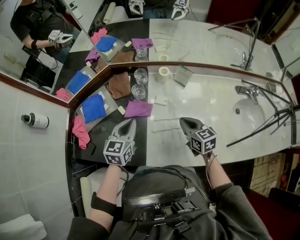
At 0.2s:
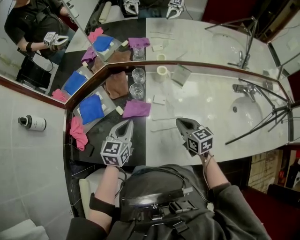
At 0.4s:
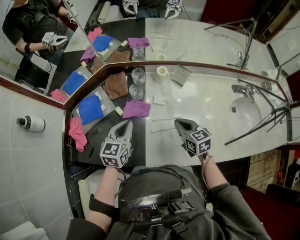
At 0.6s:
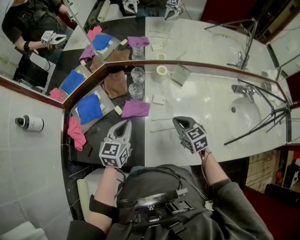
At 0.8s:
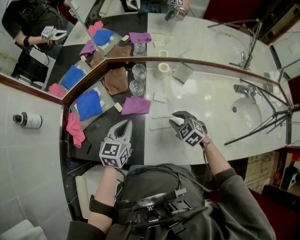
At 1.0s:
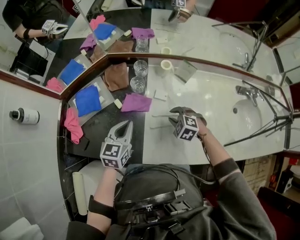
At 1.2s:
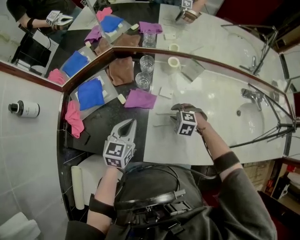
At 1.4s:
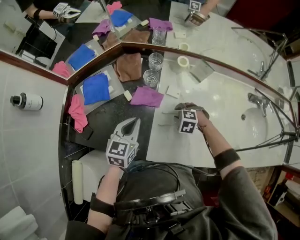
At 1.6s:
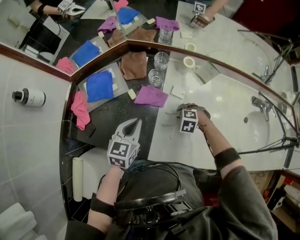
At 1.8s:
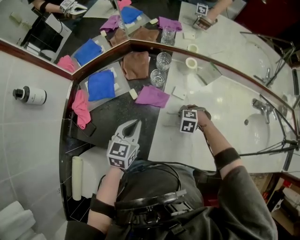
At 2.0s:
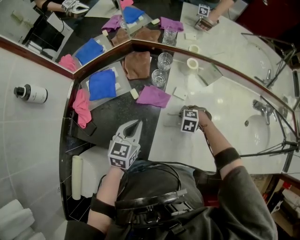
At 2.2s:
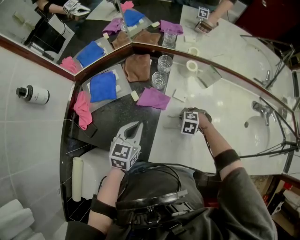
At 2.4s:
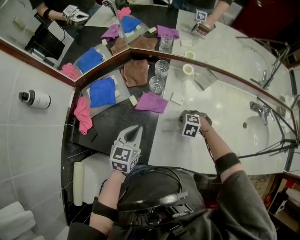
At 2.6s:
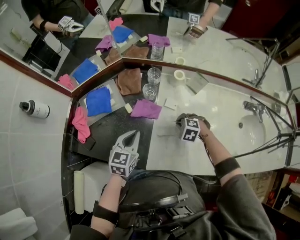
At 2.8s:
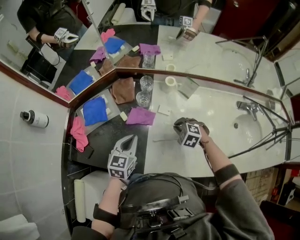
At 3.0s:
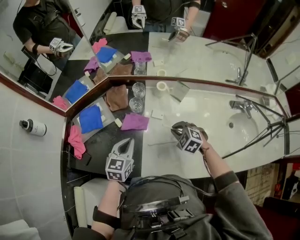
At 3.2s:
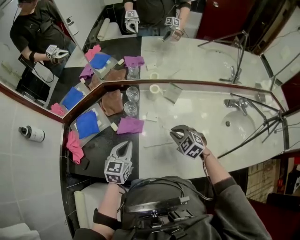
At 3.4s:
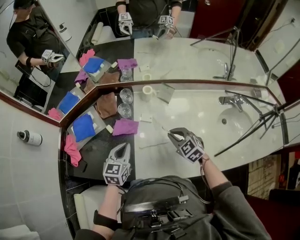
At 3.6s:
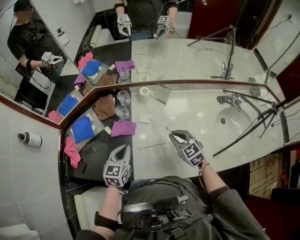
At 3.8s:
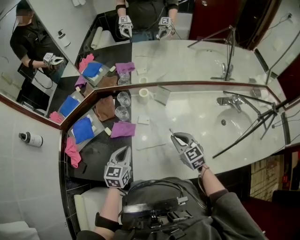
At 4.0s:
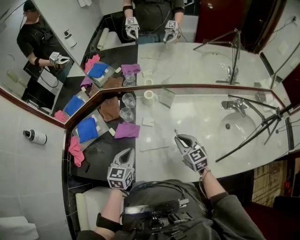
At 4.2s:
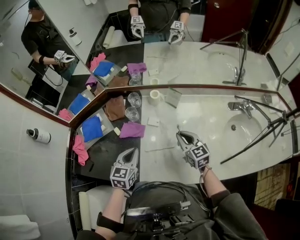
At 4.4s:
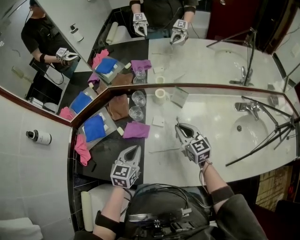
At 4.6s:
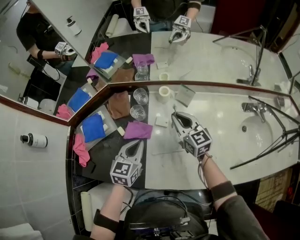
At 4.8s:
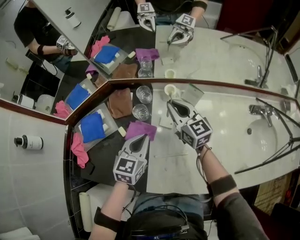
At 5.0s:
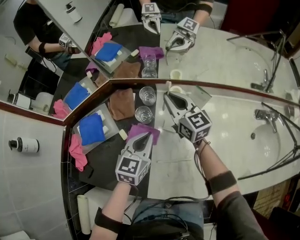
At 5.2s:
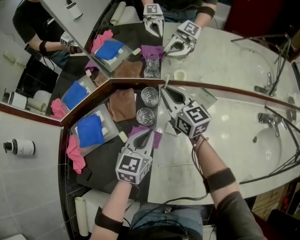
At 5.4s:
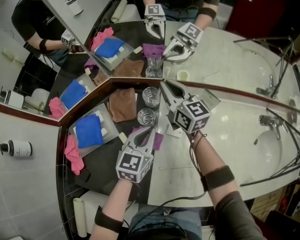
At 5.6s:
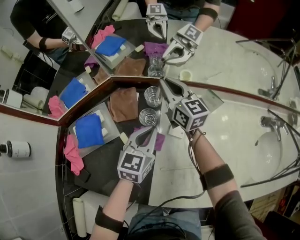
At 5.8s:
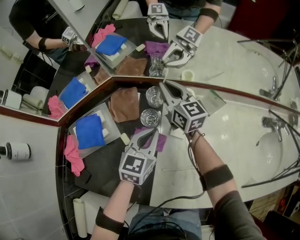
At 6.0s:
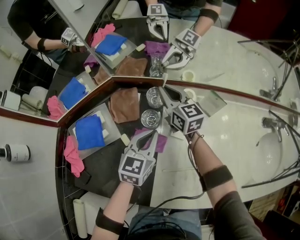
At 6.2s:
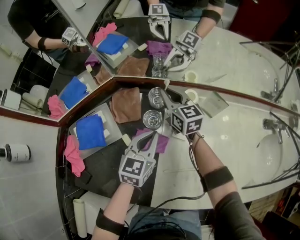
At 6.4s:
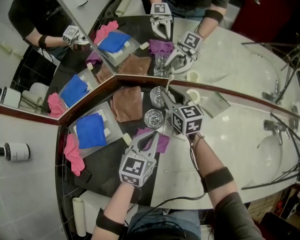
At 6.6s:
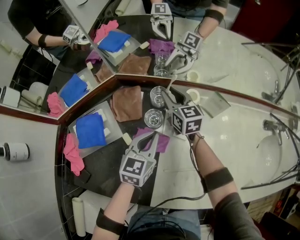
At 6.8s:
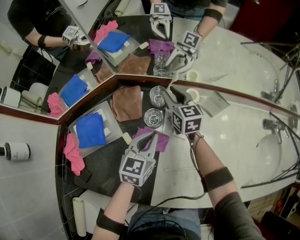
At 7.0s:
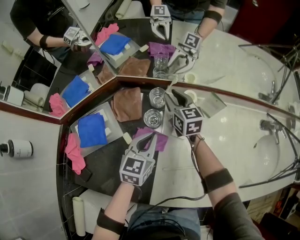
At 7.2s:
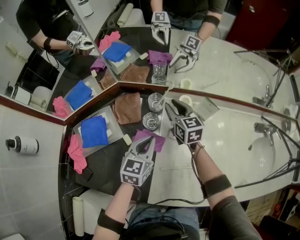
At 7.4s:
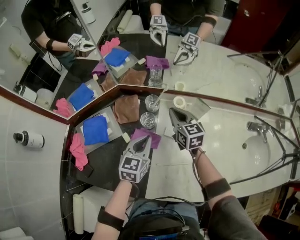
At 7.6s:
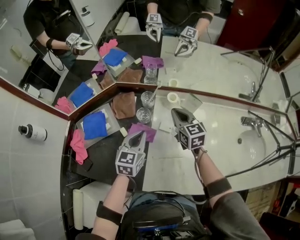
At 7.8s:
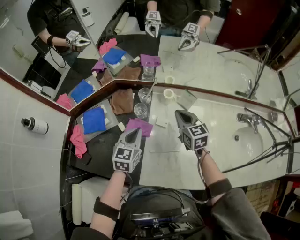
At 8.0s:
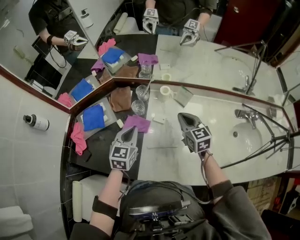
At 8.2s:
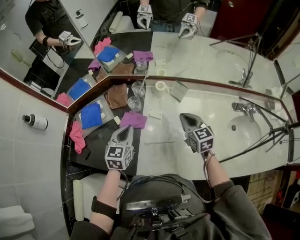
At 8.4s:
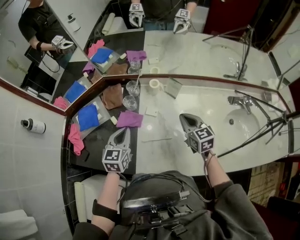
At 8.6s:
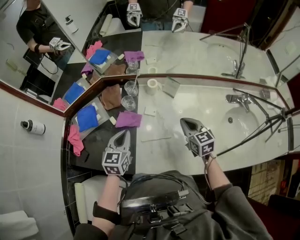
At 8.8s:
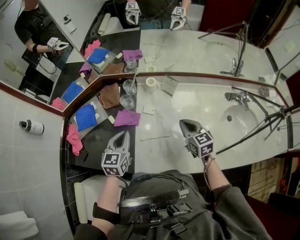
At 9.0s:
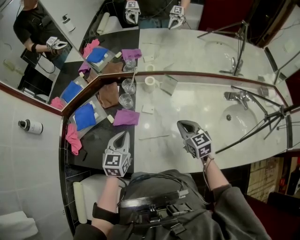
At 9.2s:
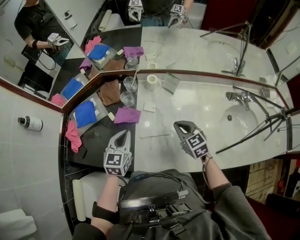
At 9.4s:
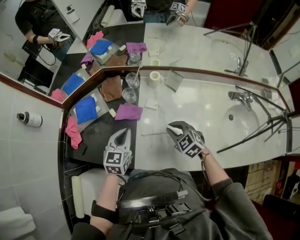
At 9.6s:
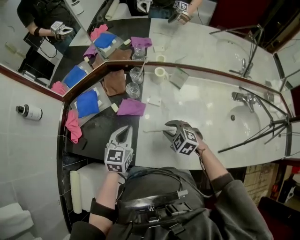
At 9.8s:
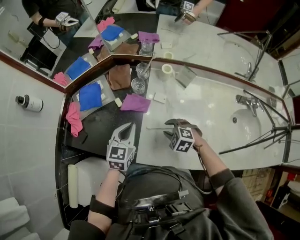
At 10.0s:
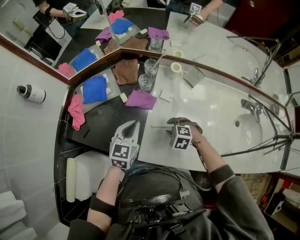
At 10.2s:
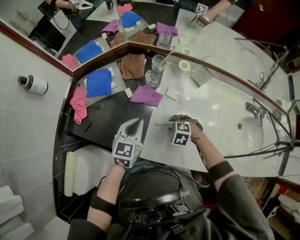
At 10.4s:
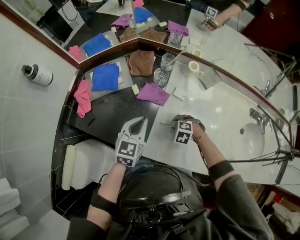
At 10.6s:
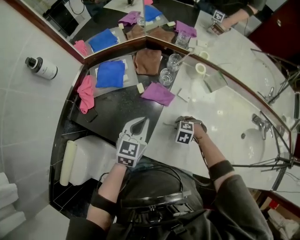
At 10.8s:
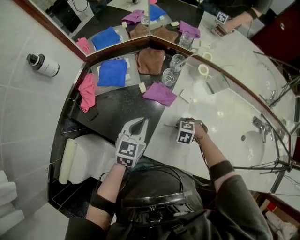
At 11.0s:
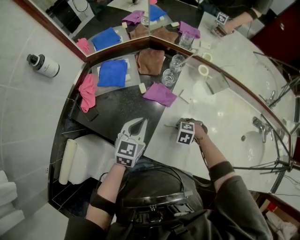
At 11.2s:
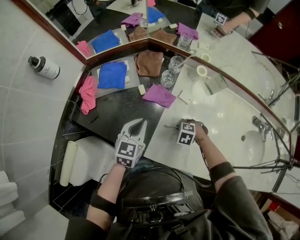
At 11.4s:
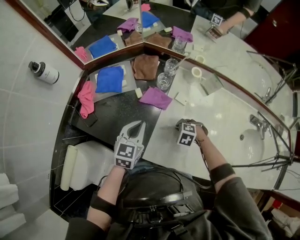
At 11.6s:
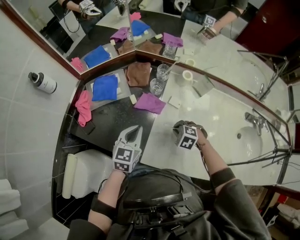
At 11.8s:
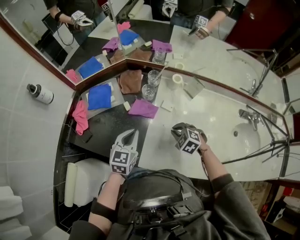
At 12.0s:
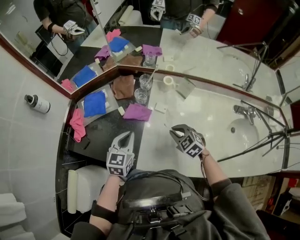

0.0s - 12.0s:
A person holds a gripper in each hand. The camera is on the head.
0.0s - 1.6s: The left gripper travels downward by about 5 cm; the right gripper is displaced downward by approximately 20 cm, tilts its fingers approximately 50 degrees downward, and opens its fingers.
1.6s - 3.0s: The right gripper is displaced upward by about 15 cm, swivels about 30 degrees, and closes up.
3.0s - 4.4s: The right gripper travels upward by roughly 10 cm, and tilts its fingers approximately 40 degrees upward. The left gripper heads to the right, covering about 5 cm.
4.4s - 6.0s: The left gripper moves forward and downward, about 15 cm; the right gripper heads forward and to the left, covering roughly 30 cm.
6.0s - 7.6s: The left gripper goes approximately 10 cm upward and backward; the right gripper goes roughly 15 cm backward, to the right and upward, and opens, then closes once more.
7.6s - 9.0s: The left gripper goes about 10 cm backward. Meanwhile the right gripper shifts about 20 cm backward and to the right.
9.0s - 10.4s: The right gripper moves downward, some 20 cm, points its fingers approximately 50 degrees further downward, and opens. The left gripper ends up roughly 5 cm from where it was.
10.4s - 12.0s: The right gripper goes some 15 cm upward, points its fingers some 30 degrees further upward, and closes up.

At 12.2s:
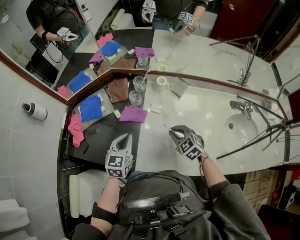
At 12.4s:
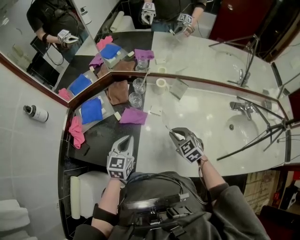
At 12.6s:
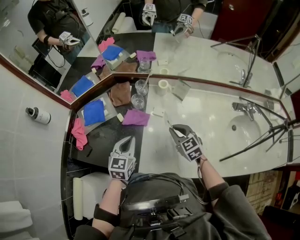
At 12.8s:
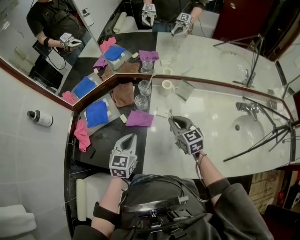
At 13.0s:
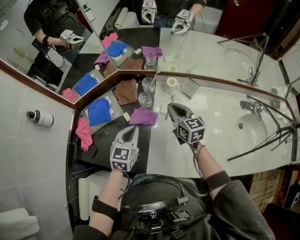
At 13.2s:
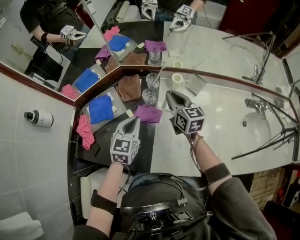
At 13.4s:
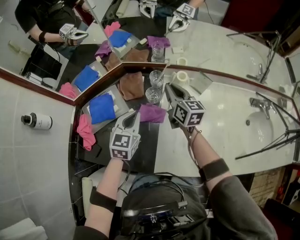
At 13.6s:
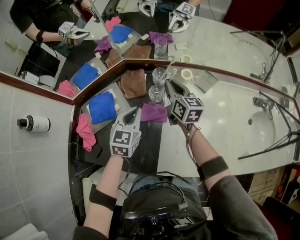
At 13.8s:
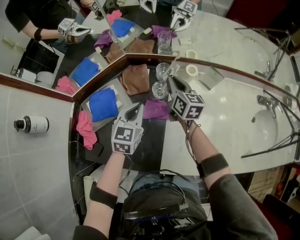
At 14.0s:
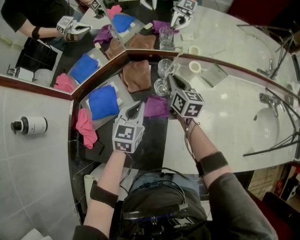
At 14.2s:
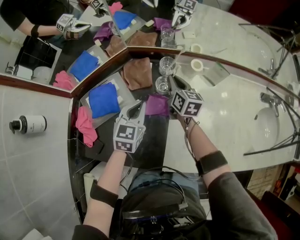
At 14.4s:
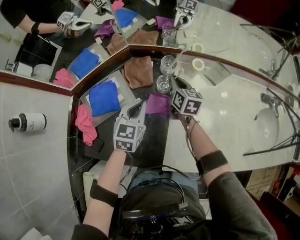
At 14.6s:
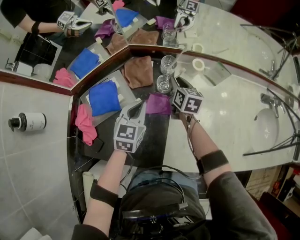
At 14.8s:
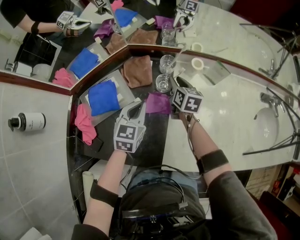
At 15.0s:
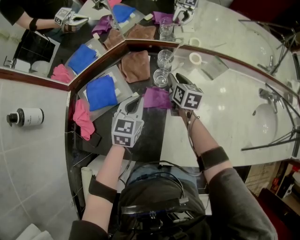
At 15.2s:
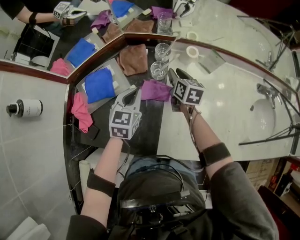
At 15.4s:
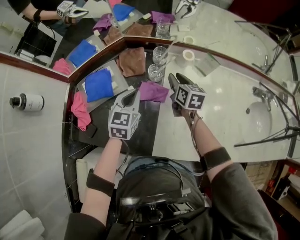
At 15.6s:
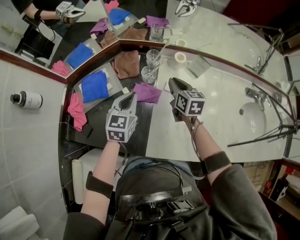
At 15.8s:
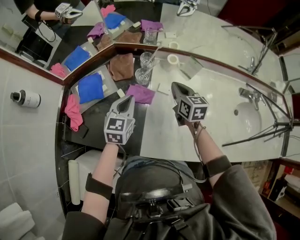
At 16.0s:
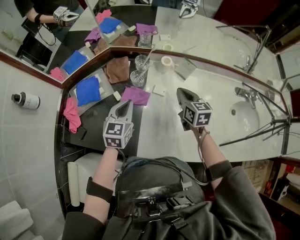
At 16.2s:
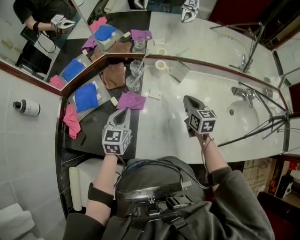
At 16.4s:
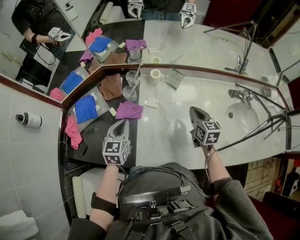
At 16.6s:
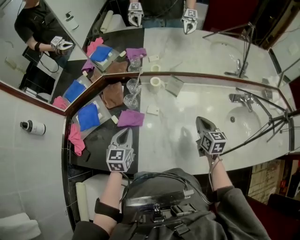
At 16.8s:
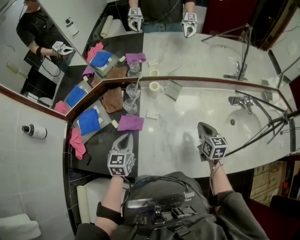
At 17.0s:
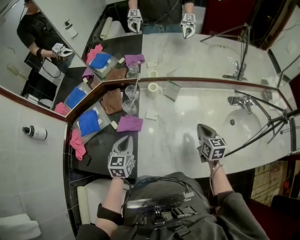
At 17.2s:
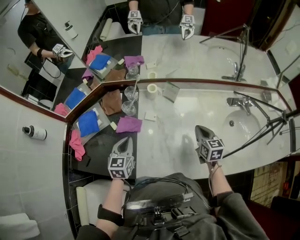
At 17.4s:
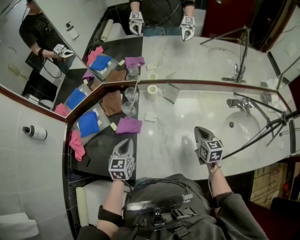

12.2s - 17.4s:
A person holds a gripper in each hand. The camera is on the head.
12.2s - 14.0s: The left gripper is displaced forward by roughly 15 cm. The right gripper shifts some 30 cm forward and to the left, and rolls clockwise, seen from behind, by approximately 50 degrees.
14.0s - 15.6s: The right gripper is displaced backward and to the right by about 10 cm, and opens, then closes once more. The left gripper shifts by approximately 5 cm.
15.6s - 17.4s: The right gripper goes some 30 cm to the right and backward. Meanwhile the left gripper travels to the right and backward by some 10 cm.

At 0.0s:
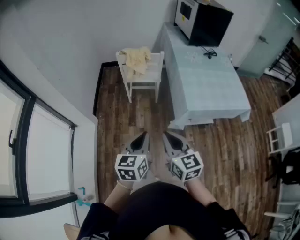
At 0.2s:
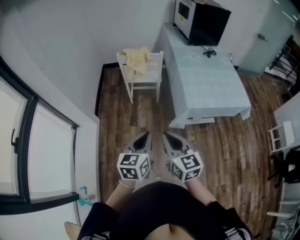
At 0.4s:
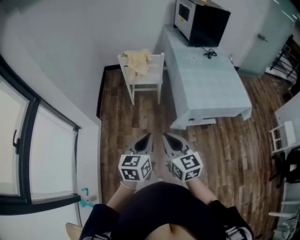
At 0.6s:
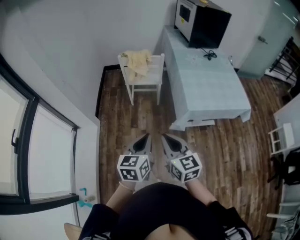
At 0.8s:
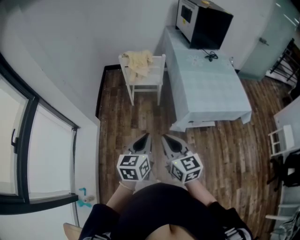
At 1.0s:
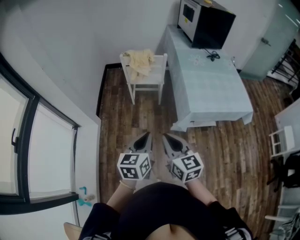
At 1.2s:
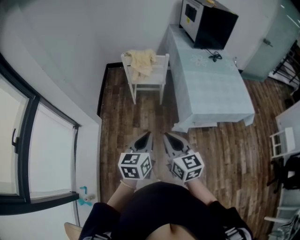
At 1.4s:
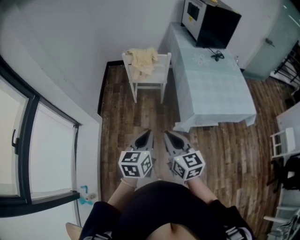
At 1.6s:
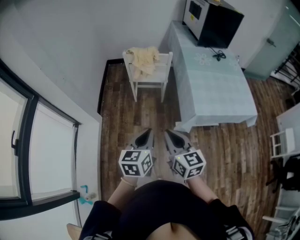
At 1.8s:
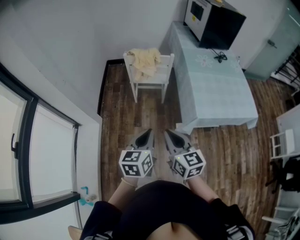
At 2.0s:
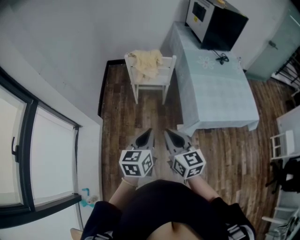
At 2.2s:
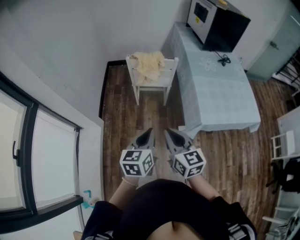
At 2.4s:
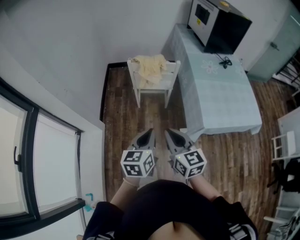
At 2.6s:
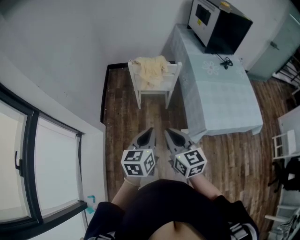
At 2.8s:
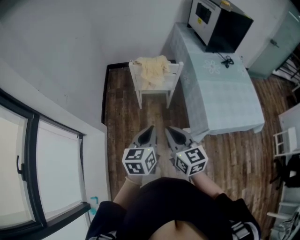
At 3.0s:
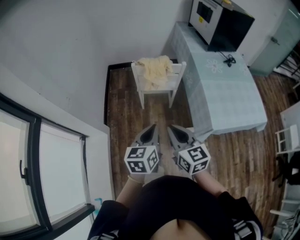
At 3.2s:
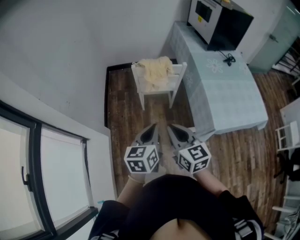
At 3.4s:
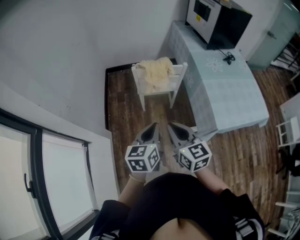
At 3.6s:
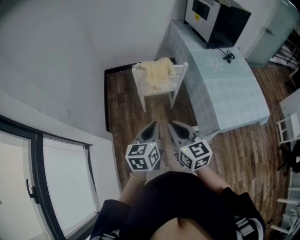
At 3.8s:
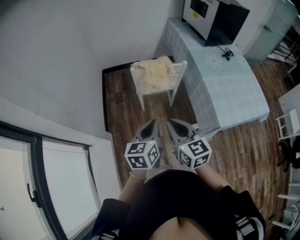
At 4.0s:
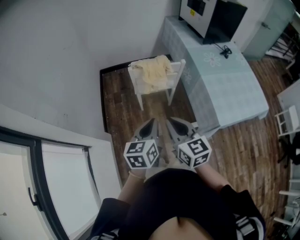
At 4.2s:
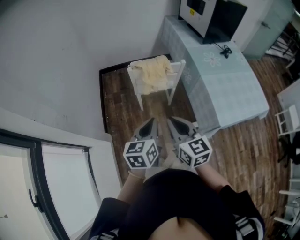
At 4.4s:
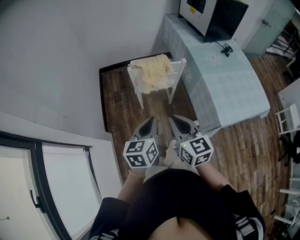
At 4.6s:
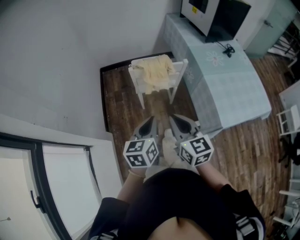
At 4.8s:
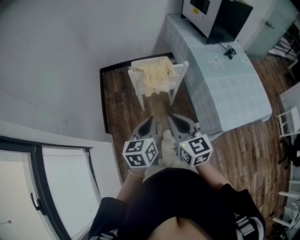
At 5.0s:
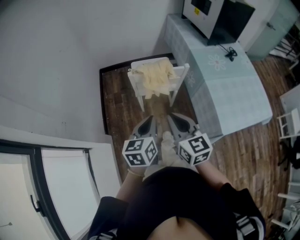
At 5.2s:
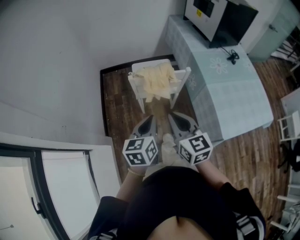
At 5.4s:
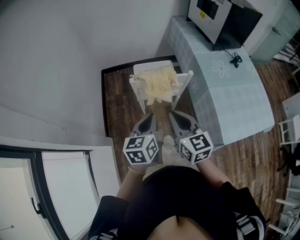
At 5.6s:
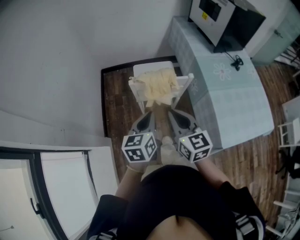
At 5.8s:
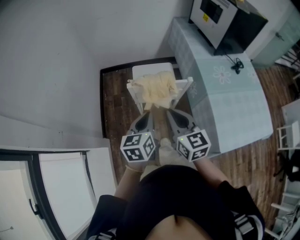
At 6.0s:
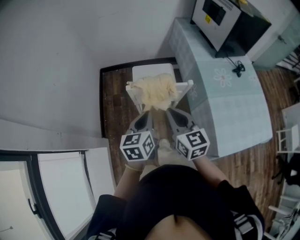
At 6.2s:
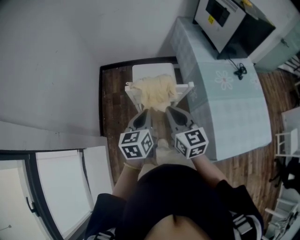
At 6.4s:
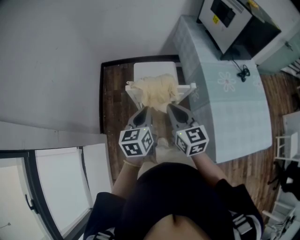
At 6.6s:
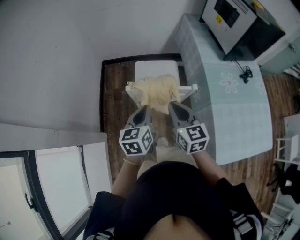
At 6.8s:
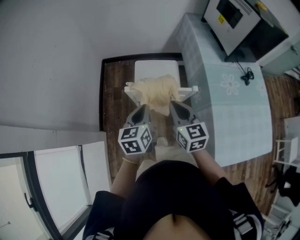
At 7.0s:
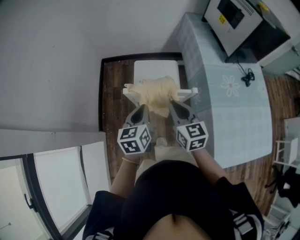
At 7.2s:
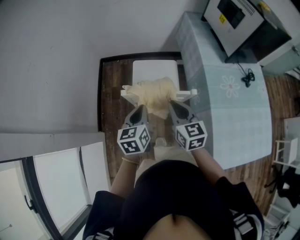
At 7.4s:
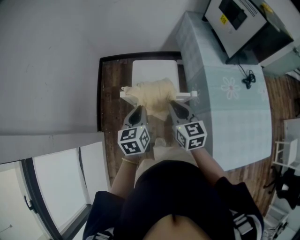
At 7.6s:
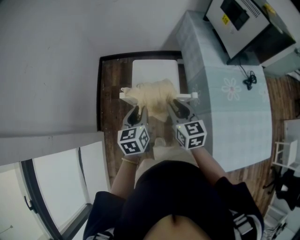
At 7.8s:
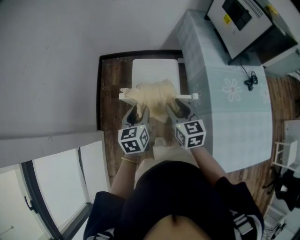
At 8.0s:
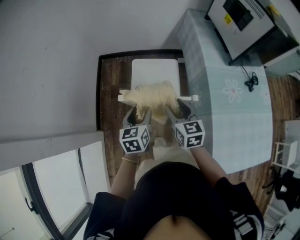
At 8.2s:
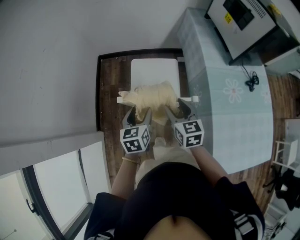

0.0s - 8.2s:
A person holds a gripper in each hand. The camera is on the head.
0.0s - 1.6s: There are only small adjustments of the grippers.
1.6s - 3.2s: The two grippers go about 20 cm forward and to the left.
3.2s - 5.0s: Both grippers move forward, some 15 cm.
5.0s - 6.6s: The two grippers go about 20 cm forward.
6.6s - 8.2s: The left gripper shifts about 10 cm downward and forward, and opens up; the right gripper heads forward and downward, covering some 15 cm, and opens.
